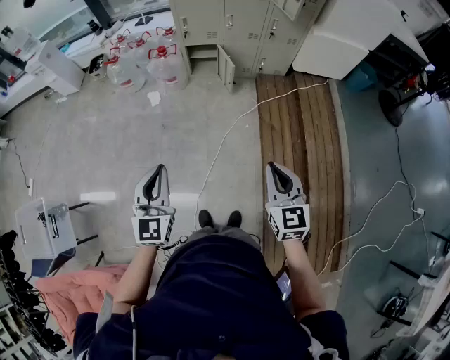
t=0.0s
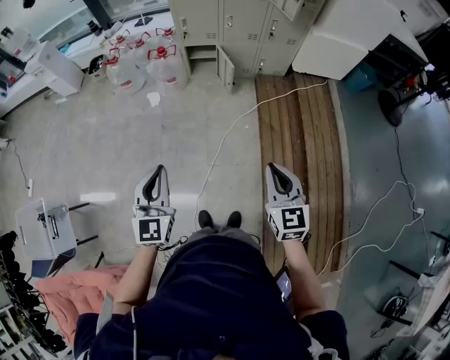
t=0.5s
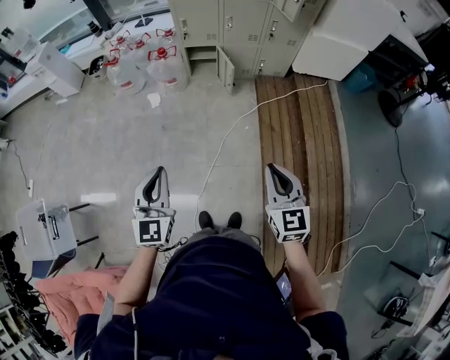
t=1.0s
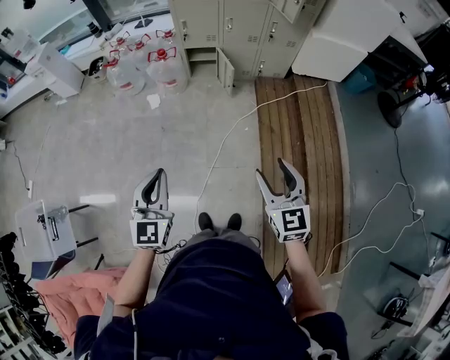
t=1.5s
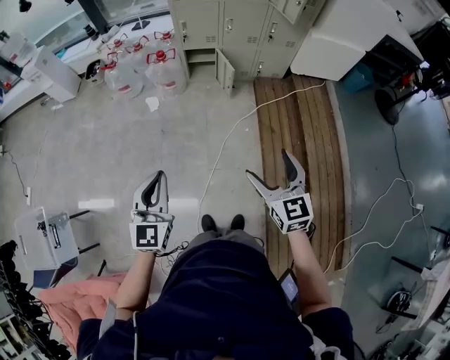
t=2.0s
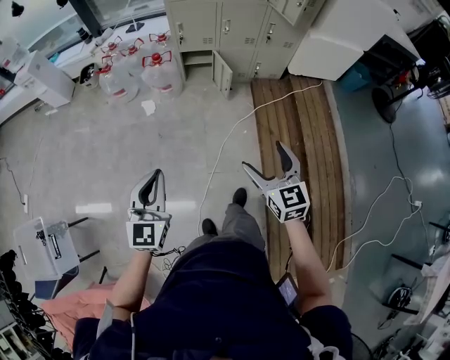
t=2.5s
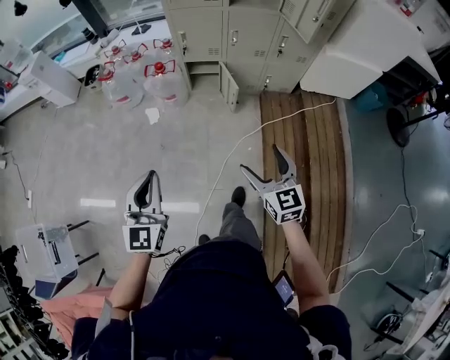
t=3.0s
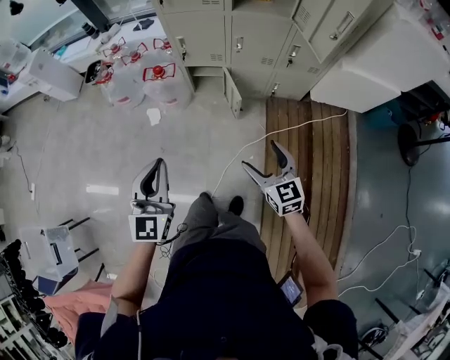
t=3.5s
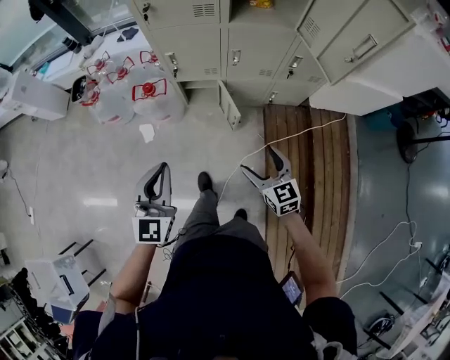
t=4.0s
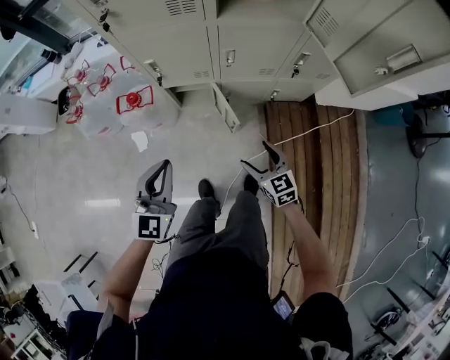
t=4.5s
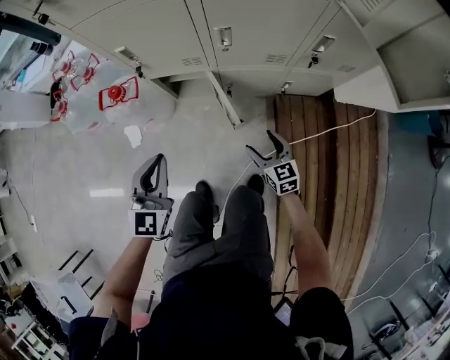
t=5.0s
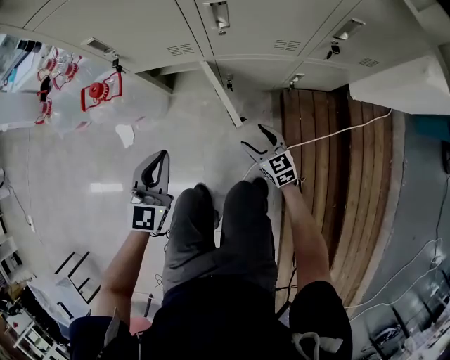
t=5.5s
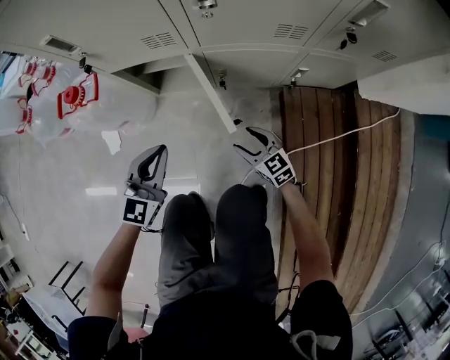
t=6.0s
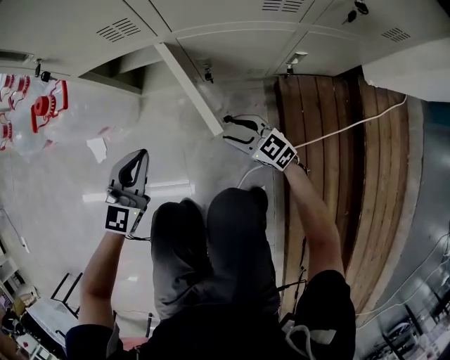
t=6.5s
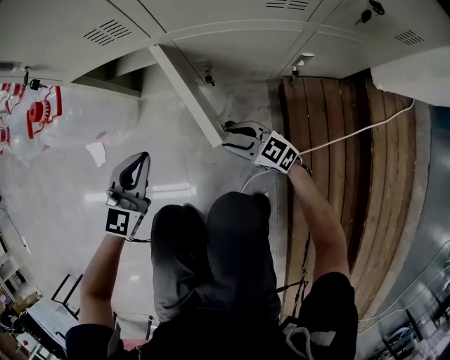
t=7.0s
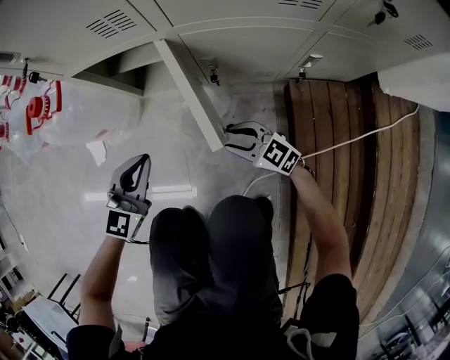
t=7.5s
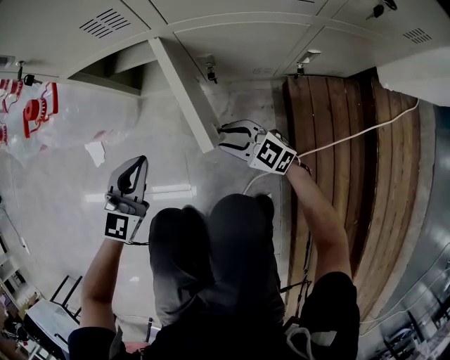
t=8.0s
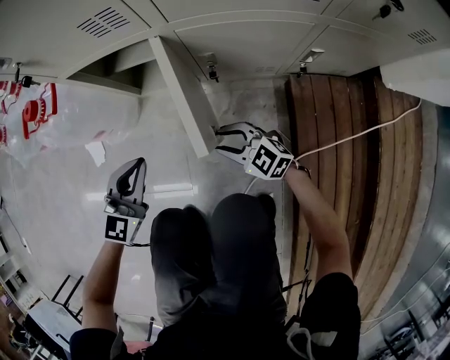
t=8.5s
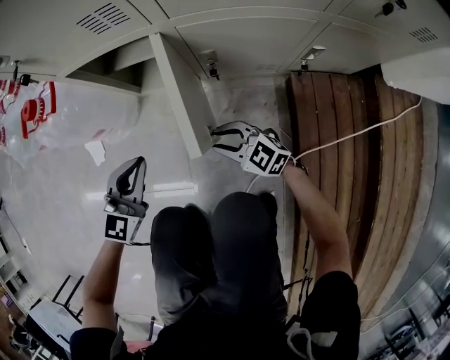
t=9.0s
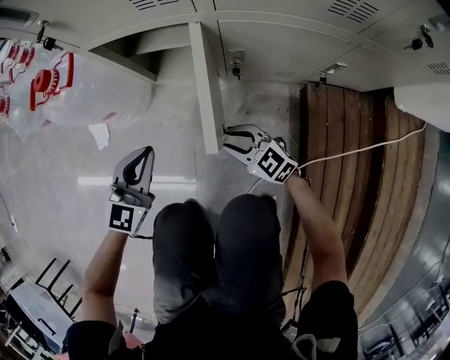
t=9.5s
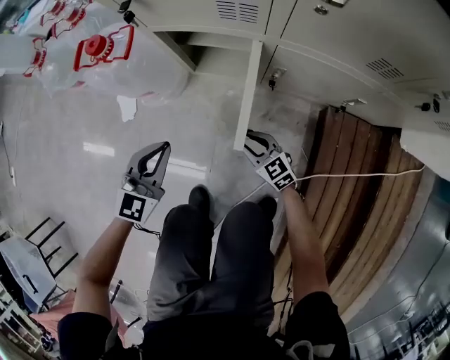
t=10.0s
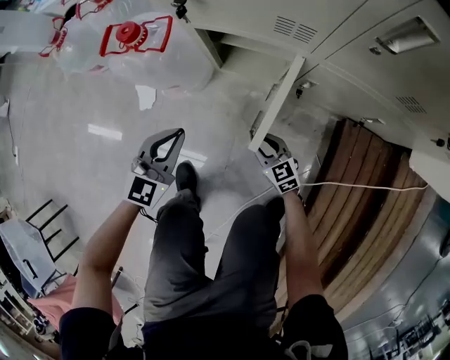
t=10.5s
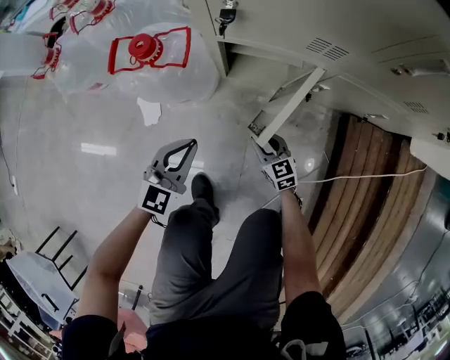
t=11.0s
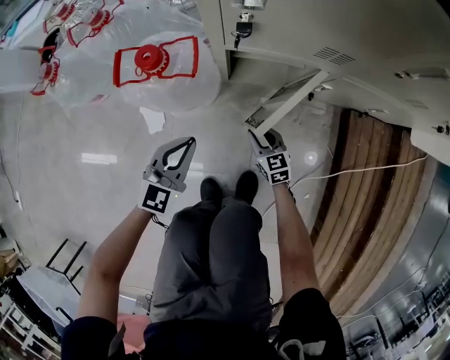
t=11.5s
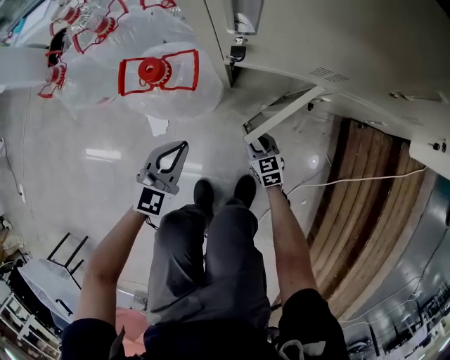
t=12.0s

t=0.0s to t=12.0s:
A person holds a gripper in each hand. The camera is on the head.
t=0.0s to t=2.0s: The right gripper is displaced to the left by approximately 5 cm, and opens its fingers.
t=2.0s to t=4.0s: The two grippers travel together, forward, roughly 50 cm.
t=4.0s to t=6.0s: The right gripper heads downward, covering some 60 cm, while the left gripper heads downward and forward, covering approximately 50 cm.
t=6.0s to t=8.0s: The right gripper heads downward, covering approximately 5 cm, and swivels roughly 30 degrees. The left gripper is displaced downward by approximately 10 cm.
t=8.0s to t=10.0s: The left gripper heads to the left and upward, covering roughly 10 cm. The right gripper heads to the left, covering approximately 5 cm.
t=10.0s to t=12.0s: Both grippers travel together to the left and forward, about 20 cm. The right gripper swivels roughly 30 degrees.

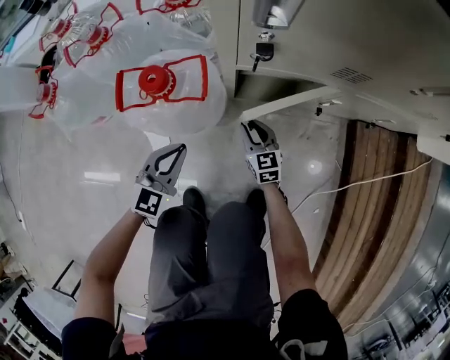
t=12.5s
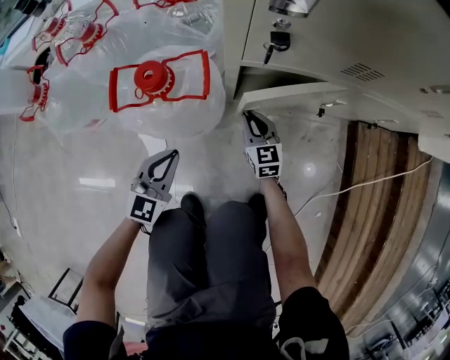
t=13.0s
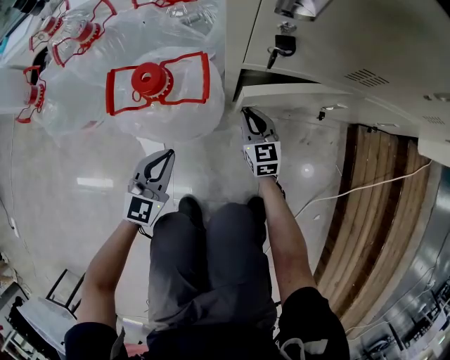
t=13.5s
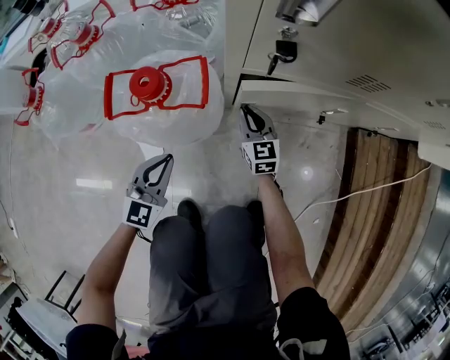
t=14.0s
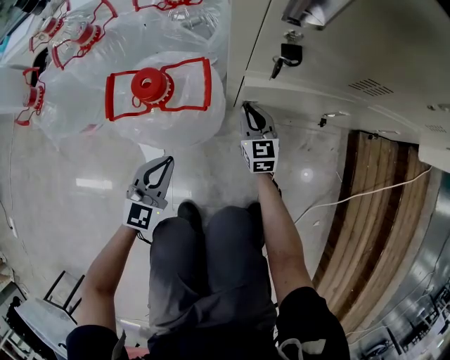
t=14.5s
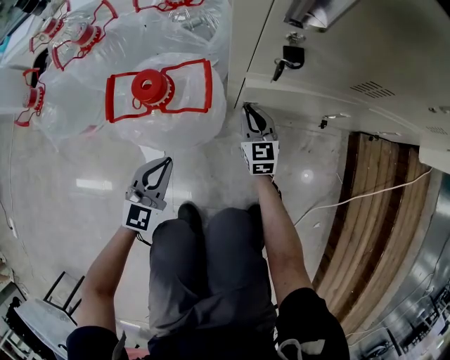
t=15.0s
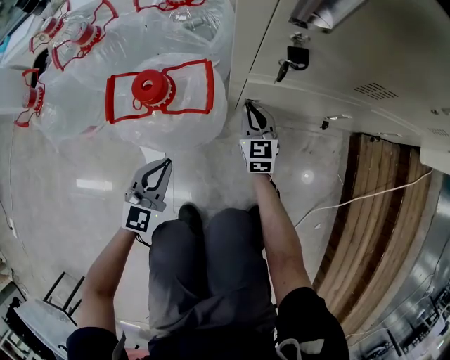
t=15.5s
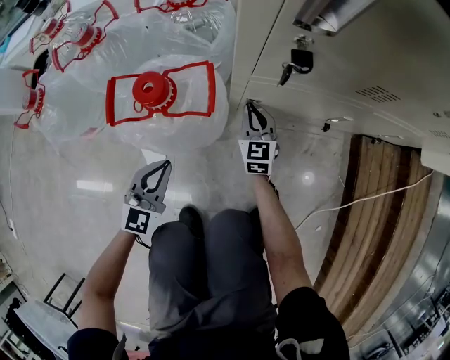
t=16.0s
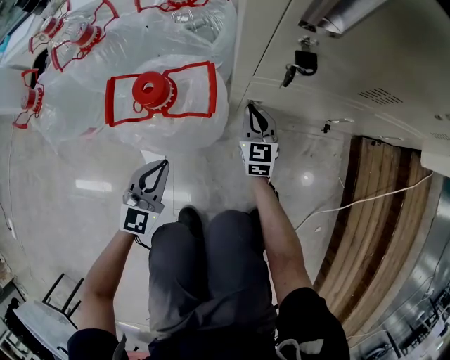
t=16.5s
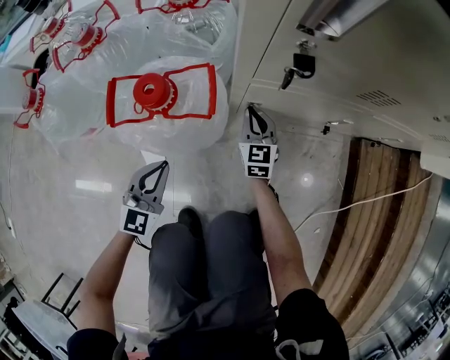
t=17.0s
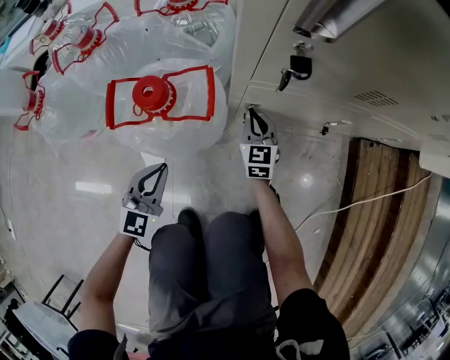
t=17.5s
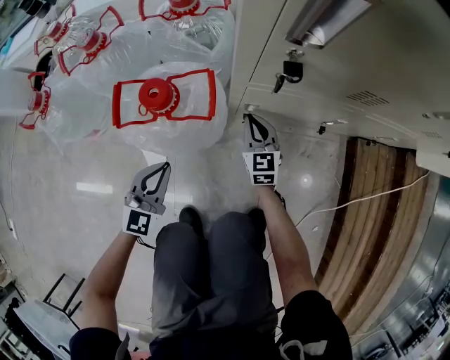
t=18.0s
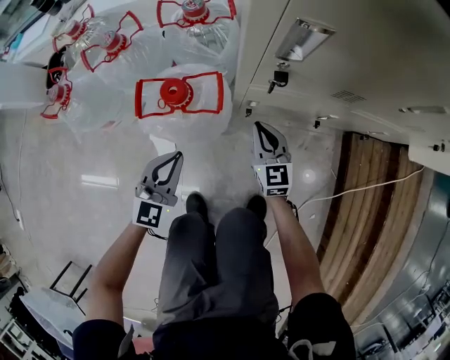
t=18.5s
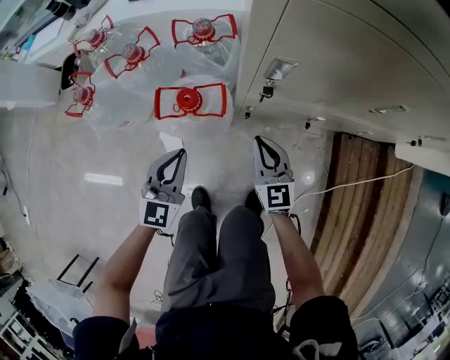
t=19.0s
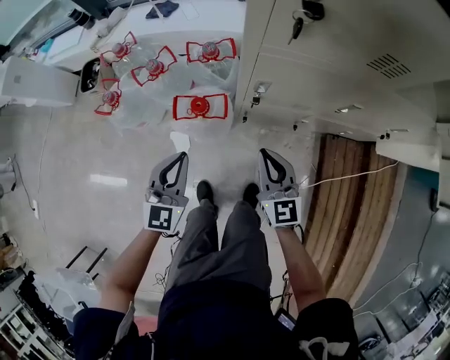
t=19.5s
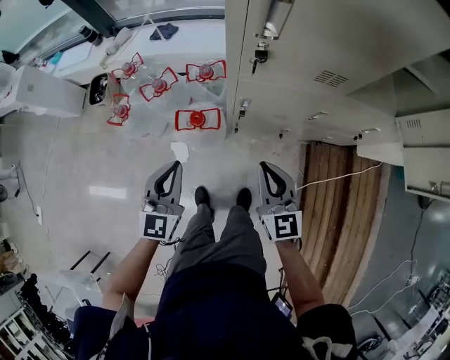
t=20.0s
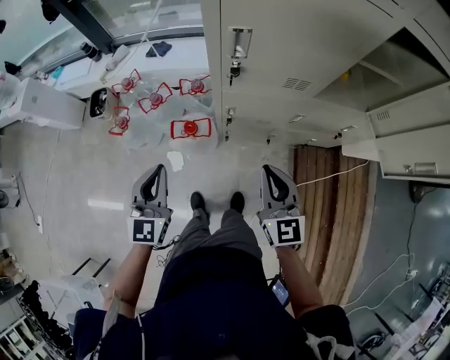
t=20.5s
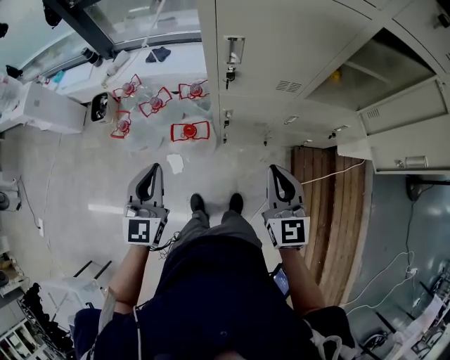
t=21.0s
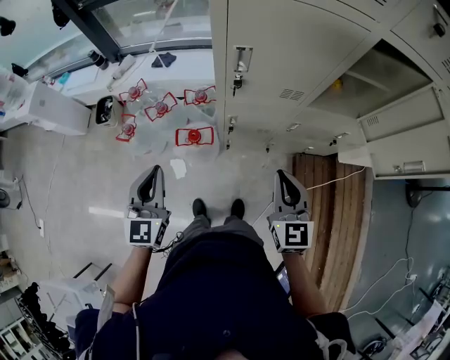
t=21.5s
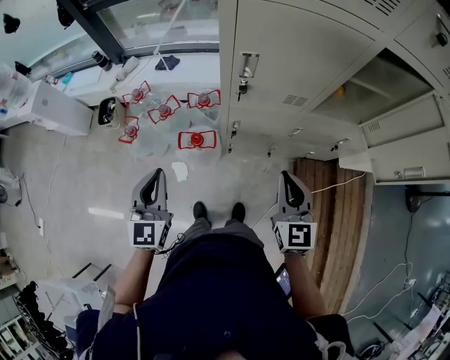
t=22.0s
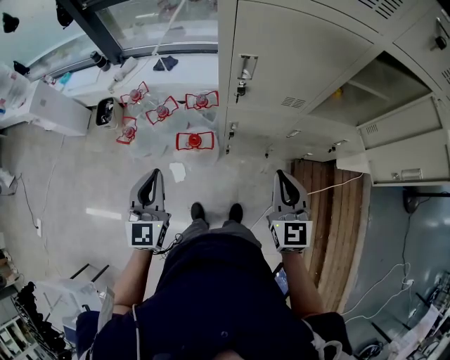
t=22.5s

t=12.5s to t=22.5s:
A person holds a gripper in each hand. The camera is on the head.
t=12.5s to t=14.5s: The right gripper shifts some 10 cm forward. The left gripper shifts roughly 5 cm downward.
t=14.5s to t=16.5s: There are only small adjustments of the grippers.
t=16.5s to t=18.5s: The right gripper travels upward and backward by some 15 cm. The left gripper is displaced upward by about 10 cm.
t=18.5s to t=20.5s: The two grippers go roughly 60 cm upward. The left gripper turns by some 30 degrees.
t=20.5s to t=22.5s: The two grippers go some 5 cm upward.

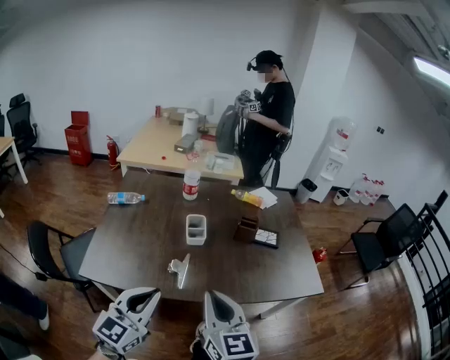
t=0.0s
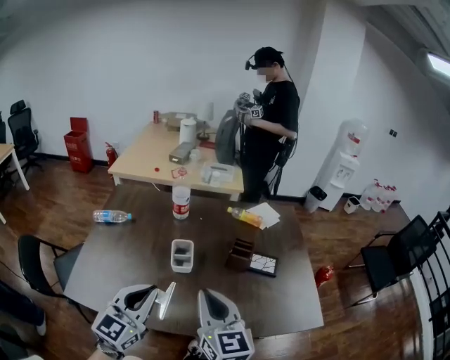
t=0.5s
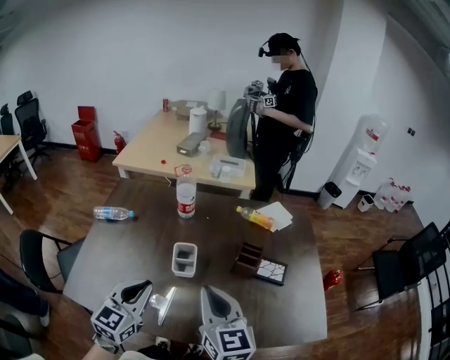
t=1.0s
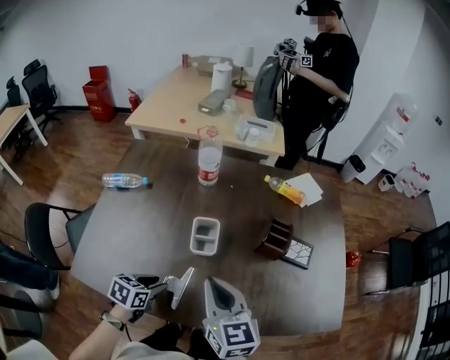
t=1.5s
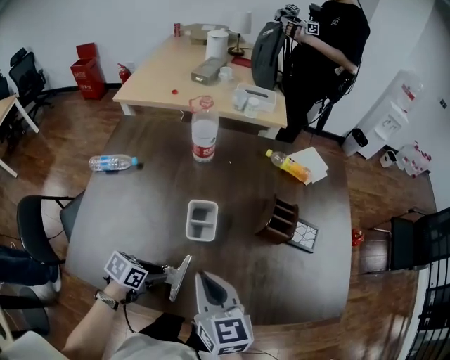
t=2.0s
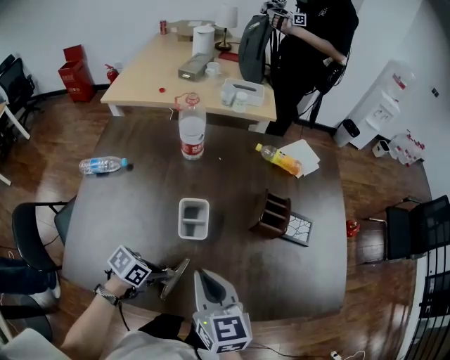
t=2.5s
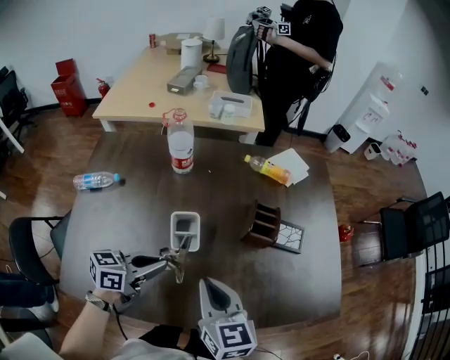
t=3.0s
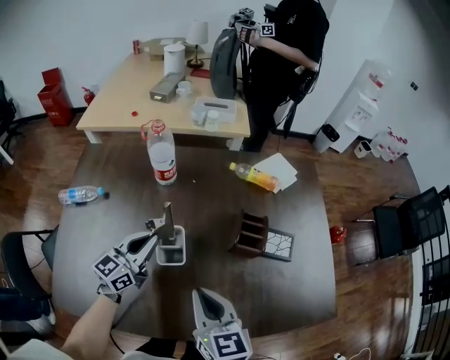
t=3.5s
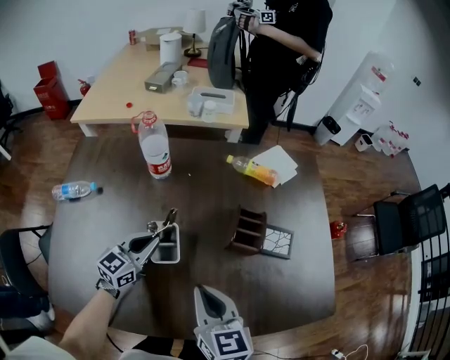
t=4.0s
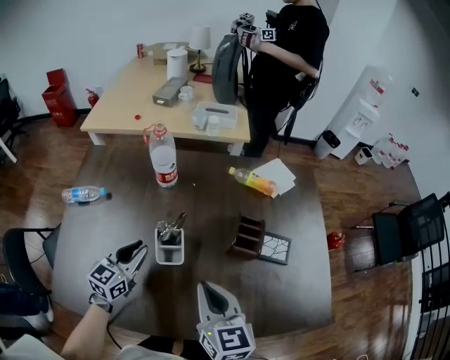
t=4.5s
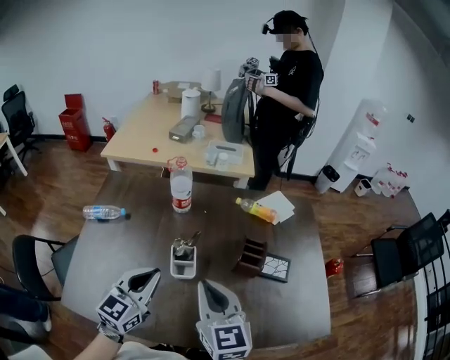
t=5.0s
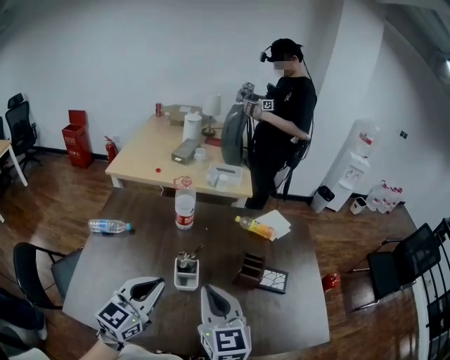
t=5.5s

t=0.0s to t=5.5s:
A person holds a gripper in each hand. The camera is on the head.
t=0.0s to t=2.0s: The right gripper heads forward and downward, covering about 30 cm. The left gripper heads downward and forward, covering about 40 cm, tips its fingers downward by approximately 50 degrees, and opens its fingers.
t=2.0s to t=3.5s: The left gripper shifts roughly 25 cm forward and upward, points its fingers some 50 degrees further upward, and closes up. The right gripper shifts by some 5 cm.
t=3.5s to t=5.5s: The left gripper shifts some 20 cm upward and backward, and opens, then closes again, while the right gripper shifts some 10 cm upward, and swivels some 20 degrees.
